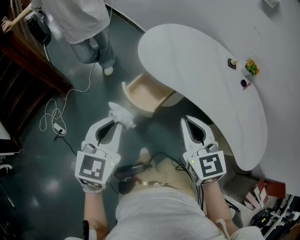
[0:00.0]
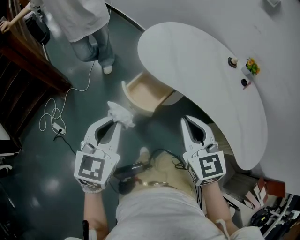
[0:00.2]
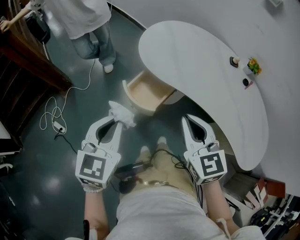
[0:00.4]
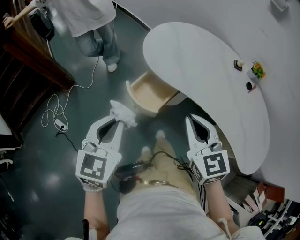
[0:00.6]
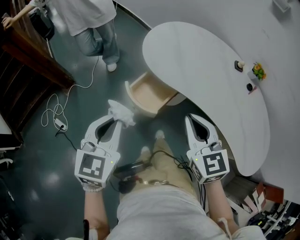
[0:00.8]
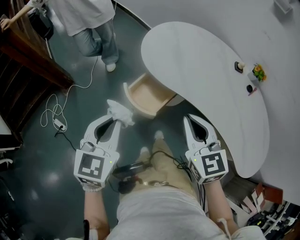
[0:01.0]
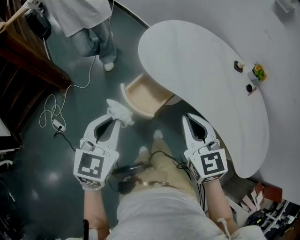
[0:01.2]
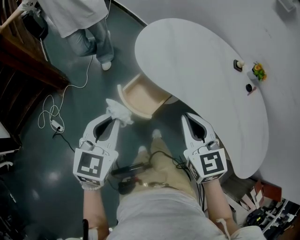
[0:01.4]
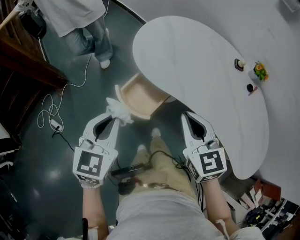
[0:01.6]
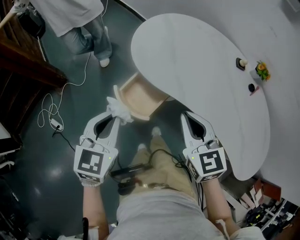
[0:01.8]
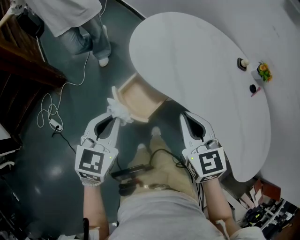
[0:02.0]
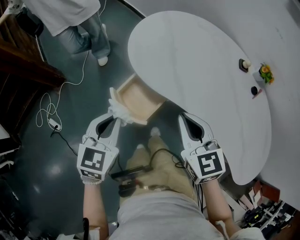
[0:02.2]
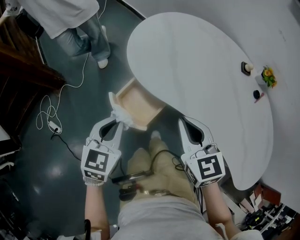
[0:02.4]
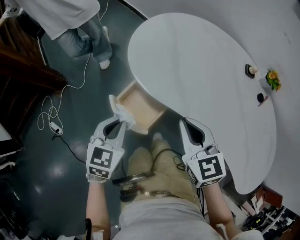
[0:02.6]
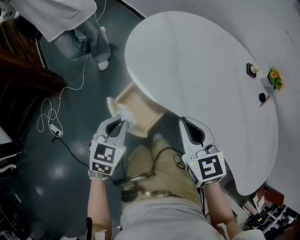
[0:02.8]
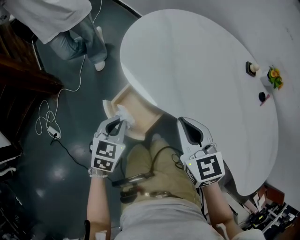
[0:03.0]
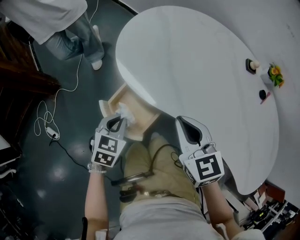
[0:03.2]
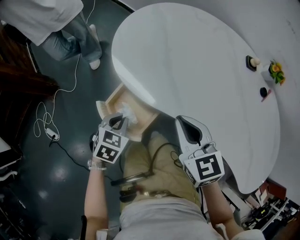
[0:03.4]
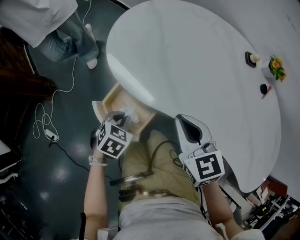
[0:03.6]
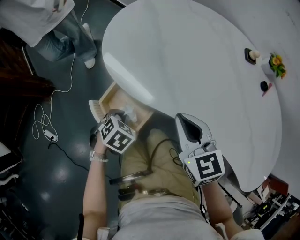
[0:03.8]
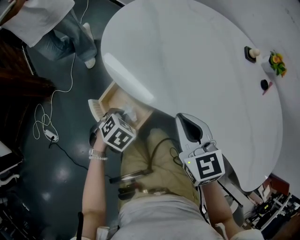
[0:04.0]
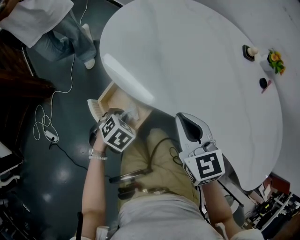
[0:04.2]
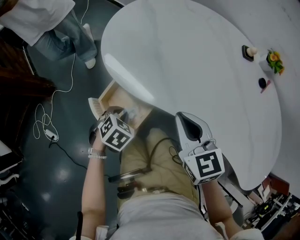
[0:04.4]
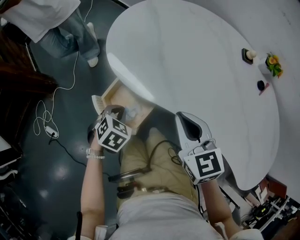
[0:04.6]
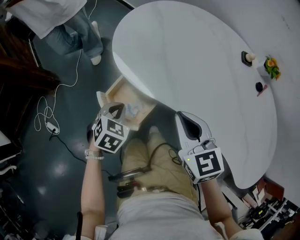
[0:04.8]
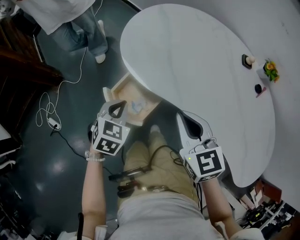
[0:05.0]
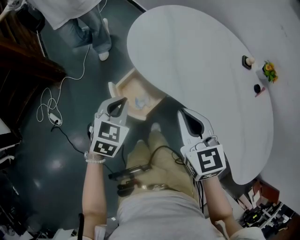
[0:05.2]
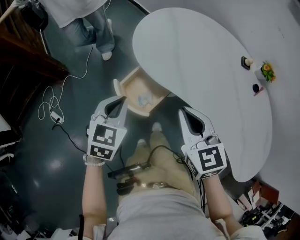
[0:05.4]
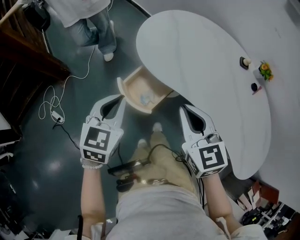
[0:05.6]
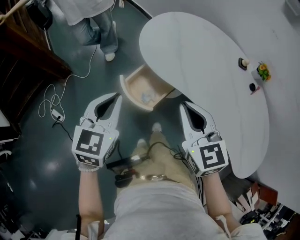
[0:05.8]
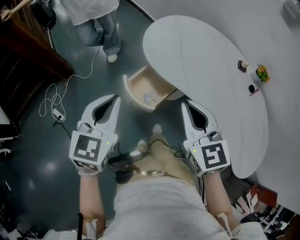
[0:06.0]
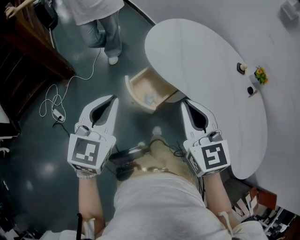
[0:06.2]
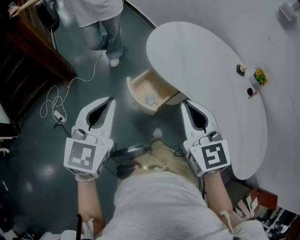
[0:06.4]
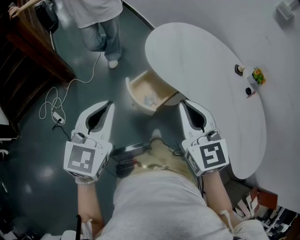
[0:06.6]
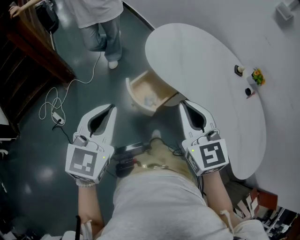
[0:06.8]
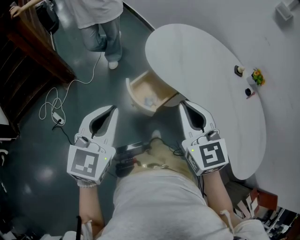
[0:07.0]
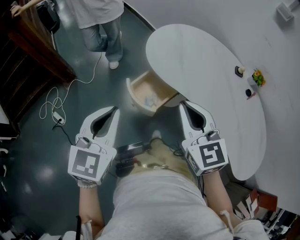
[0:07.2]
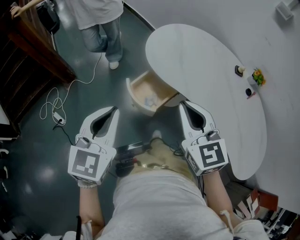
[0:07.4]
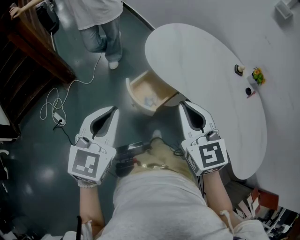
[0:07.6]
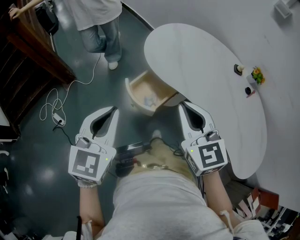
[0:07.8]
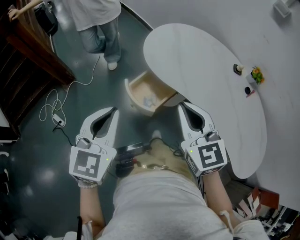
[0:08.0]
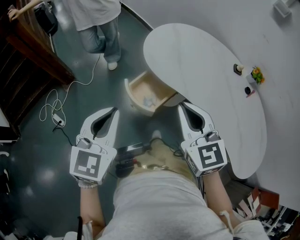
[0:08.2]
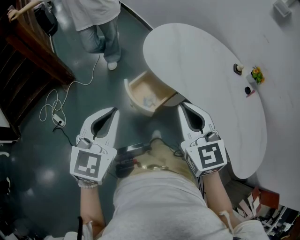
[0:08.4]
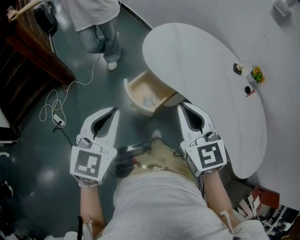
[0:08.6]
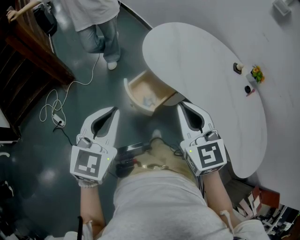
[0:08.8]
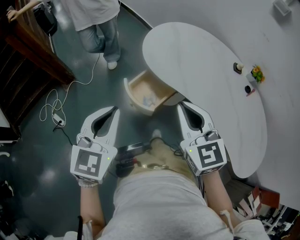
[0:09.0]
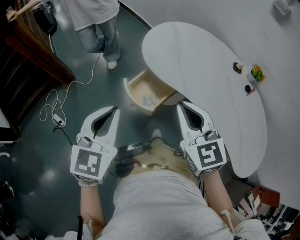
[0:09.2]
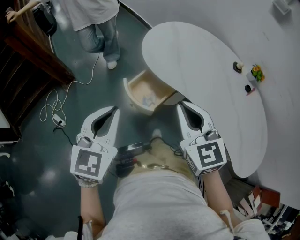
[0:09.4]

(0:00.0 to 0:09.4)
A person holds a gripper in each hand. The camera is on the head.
0:00.0 - 0:01.6: The two grippers go roughly 10 cm forward.
0:01.6 - 0:03.2: The left gripper heads downward and forward, covering approximately 25 cm, and changes its angle by some 20 degrees. Meanwhile the right gripper moves downward and forward, approximately 15 cm.
0:03.2 - 0:04.8: The left gripper travels downward and back again, some 10 cm each way.
0:04.8 - 0:06.2: The left gripper is displaced upward and backward by approximately 30 cm, and tilts its fingers about 40 degrees upward, while the right gripper shifts about 20 cm upward, backward and to the left.
0:06.2 - 0:09.4: There are only small adjustments of the grippers.

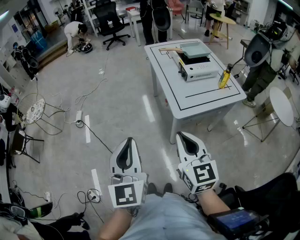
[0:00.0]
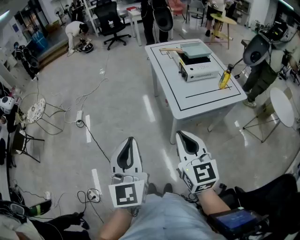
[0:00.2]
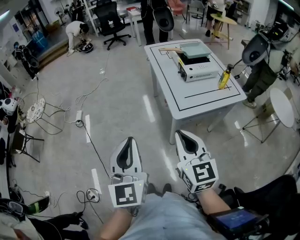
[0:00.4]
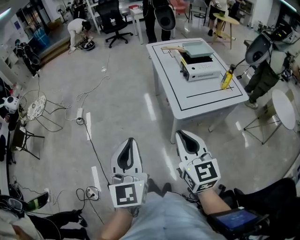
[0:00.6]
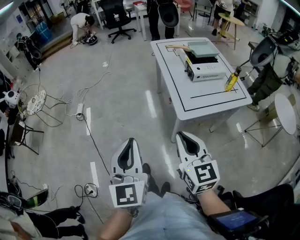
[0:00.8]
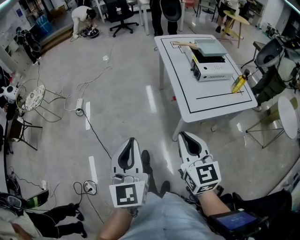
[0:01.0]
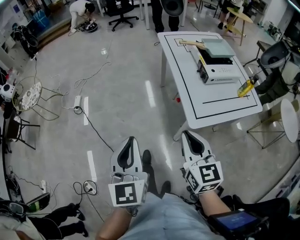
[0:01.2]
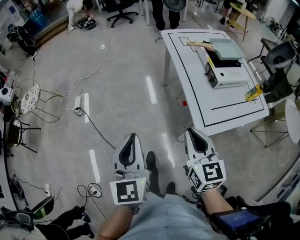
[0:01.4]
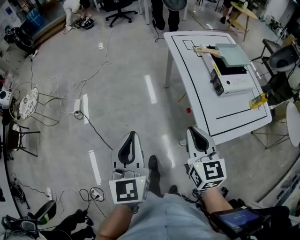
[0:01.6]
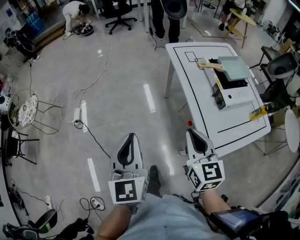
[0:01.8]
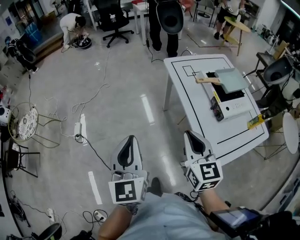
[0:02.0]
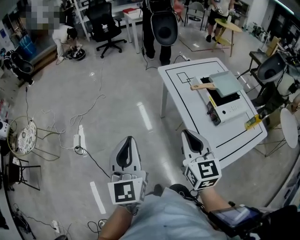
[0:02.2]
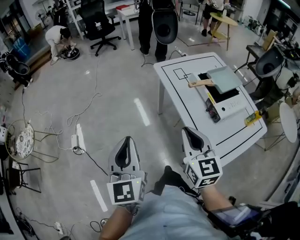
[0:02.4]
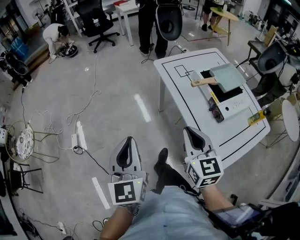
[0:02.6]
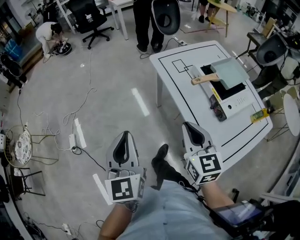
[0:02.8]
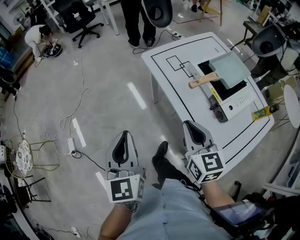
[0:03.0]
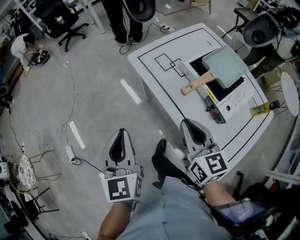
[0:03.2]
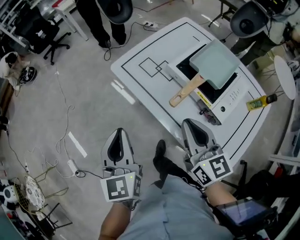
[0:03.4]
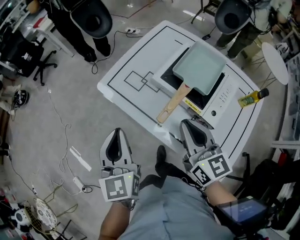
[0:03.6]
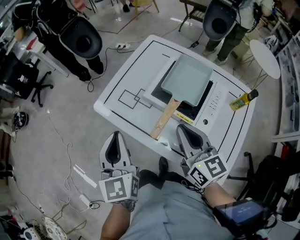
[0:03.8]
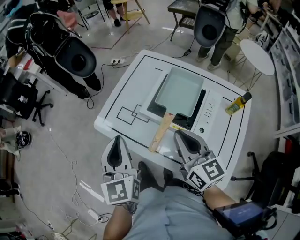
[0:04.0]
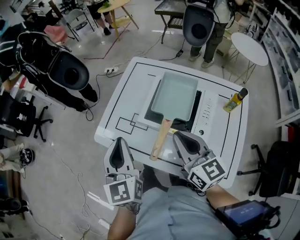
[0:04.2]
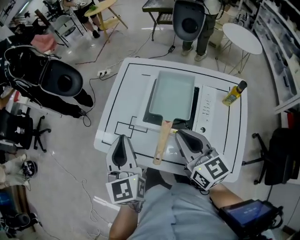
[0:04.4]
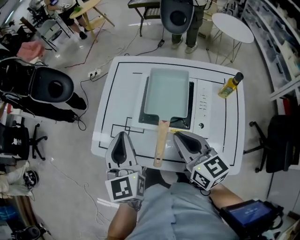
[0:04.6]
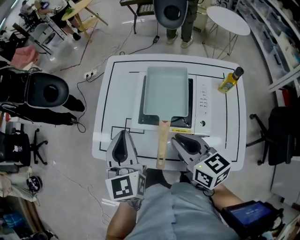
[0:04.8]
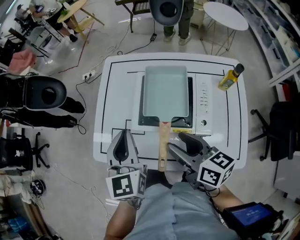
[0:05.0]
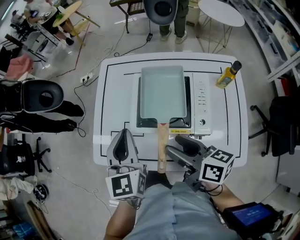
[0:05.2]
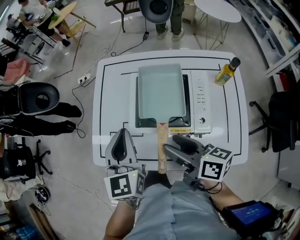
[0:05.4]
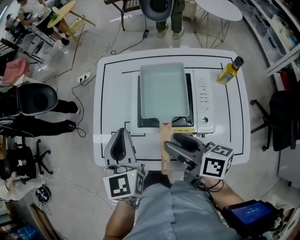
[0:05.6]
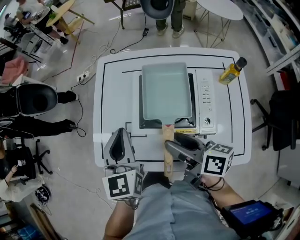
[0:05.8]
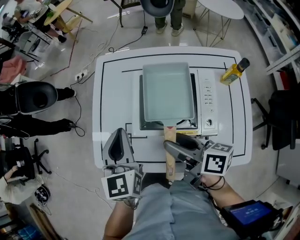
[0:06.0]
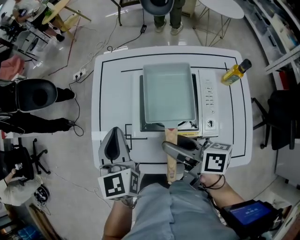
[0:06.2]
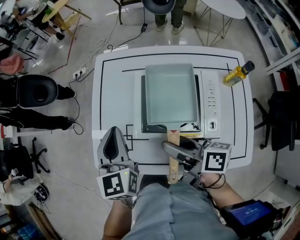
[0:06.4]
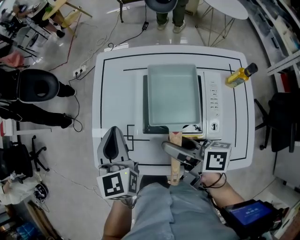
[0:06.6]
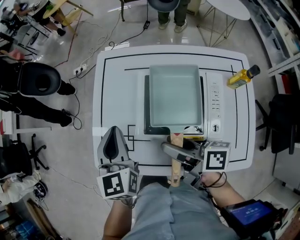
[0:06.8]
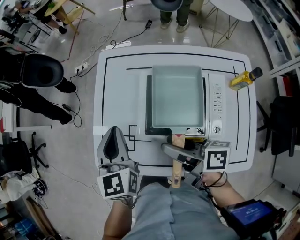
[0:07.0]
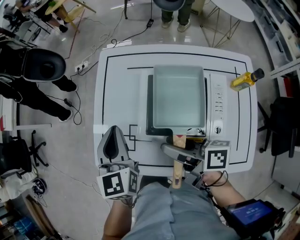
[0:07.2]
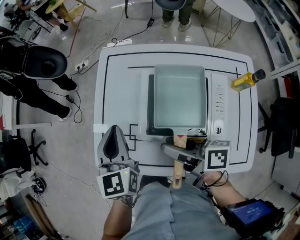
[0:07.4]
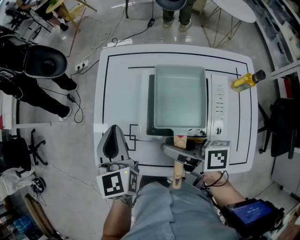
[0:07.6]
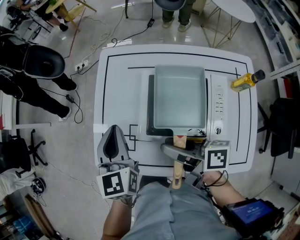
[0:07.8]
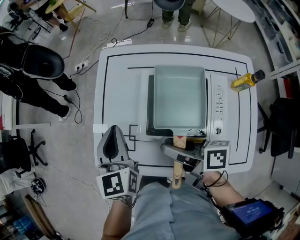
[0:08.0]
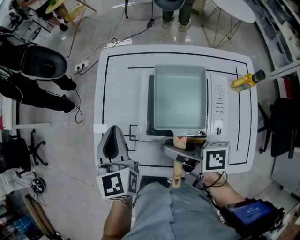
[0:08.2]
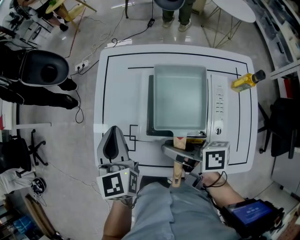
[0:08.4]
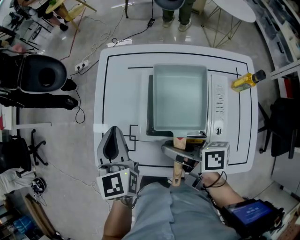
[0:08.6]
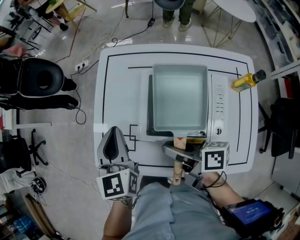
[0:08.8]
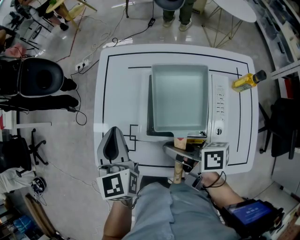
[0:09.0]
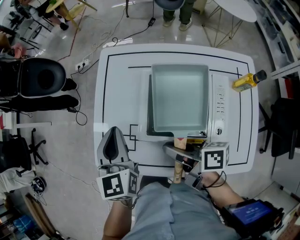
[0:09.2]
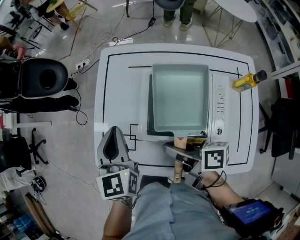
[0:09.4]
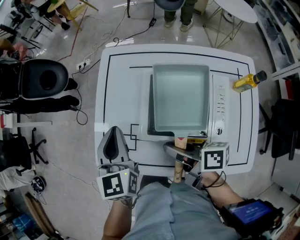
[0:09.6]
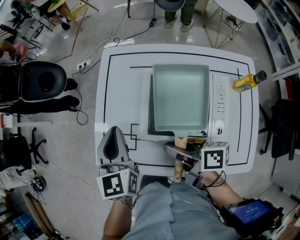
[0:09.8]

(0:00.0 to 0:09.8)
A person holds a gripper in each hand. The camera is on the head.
0:00.0 - 0:01.4: The two grippers go about 25 cm forward.
0:01.4 - 0:02.8: Both grippers travel together forward, approximately 30 cm.
0:02.8 - 0:04.2: The right gripper changes place by approximately 30 cm, and turns by about 30 degrees. The left gripper moves some 40 cm, and rotates roughly 40 degrees.
0:04.2 - 0:05.6: The left gripper shifts about 15 cm forward, downward and to the right, and rotates some 30 degrees. Meanwhile the right gripper goes approximately 5 cm downward, rotates around the line of its fingers by roughly 40 degrees, clockwise from behind, and opens.
0:05.6 - 0:07.0: The two grippers go roughly 5 cm forward.
0:07.0 - 0:09.8: The grippers stay close to where they were, moving slightly.

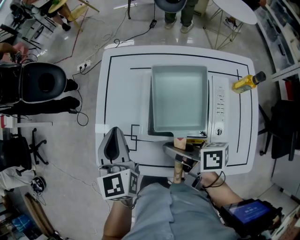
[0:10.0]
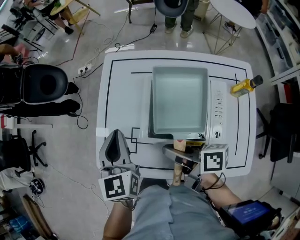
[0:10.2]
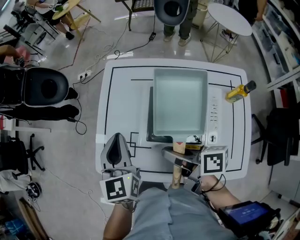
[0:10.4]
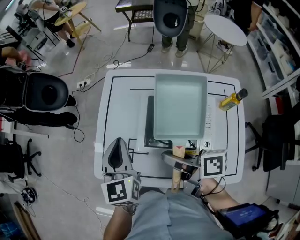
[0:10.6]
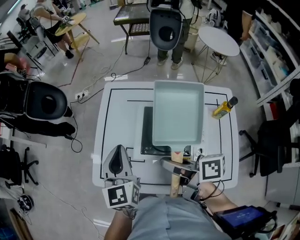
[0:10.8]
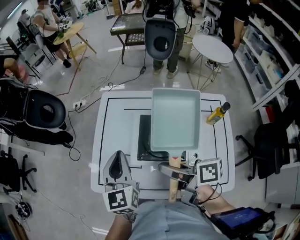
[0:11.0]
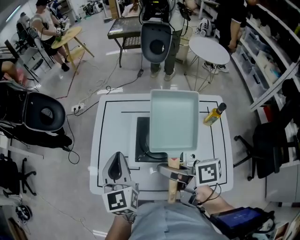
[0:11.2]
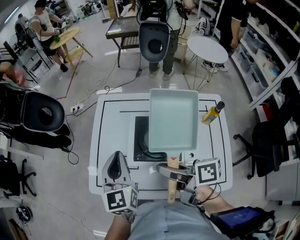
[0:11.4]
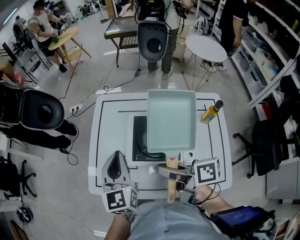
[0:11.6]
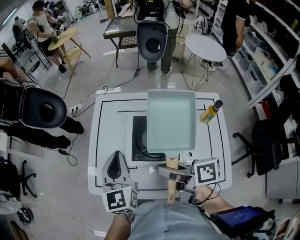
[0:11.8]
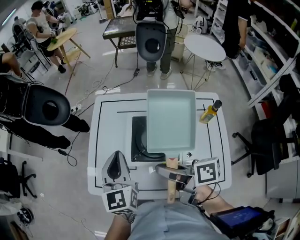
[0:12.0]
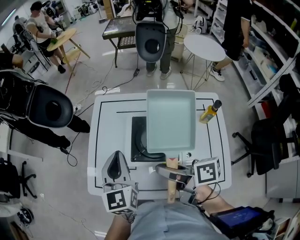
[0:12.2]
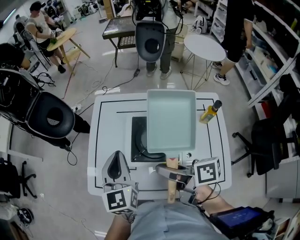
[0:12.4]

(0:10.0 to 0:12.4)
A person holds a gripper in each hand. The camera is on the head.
0:10.0 - 0:11.2: The right gripper is displaced upward by some 10 cm, while the left gripper moves upward and backward, some 10 cm.
0:11.2 - 0:12.4: There are only small adjustments of the grippers.

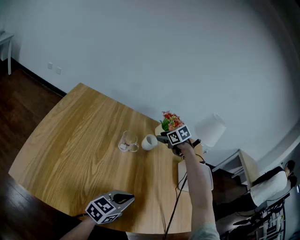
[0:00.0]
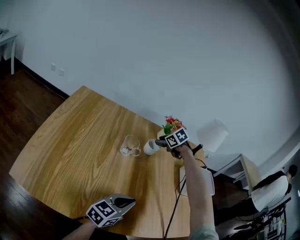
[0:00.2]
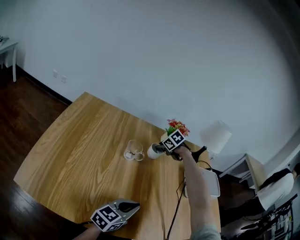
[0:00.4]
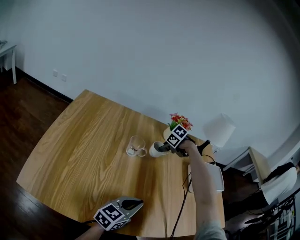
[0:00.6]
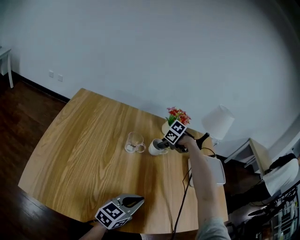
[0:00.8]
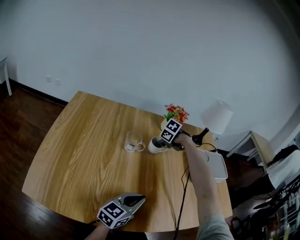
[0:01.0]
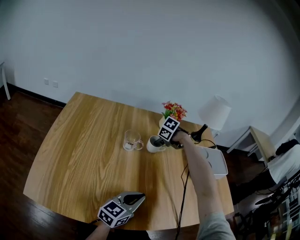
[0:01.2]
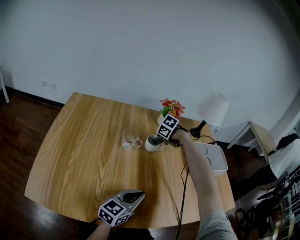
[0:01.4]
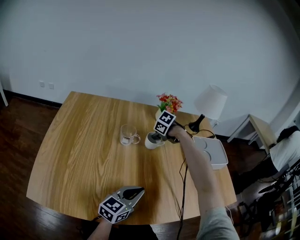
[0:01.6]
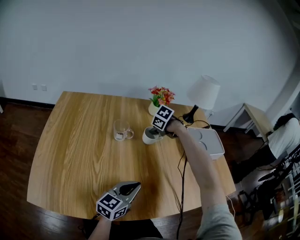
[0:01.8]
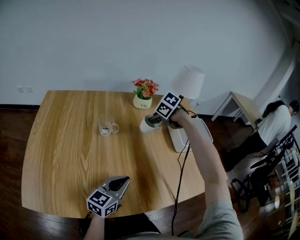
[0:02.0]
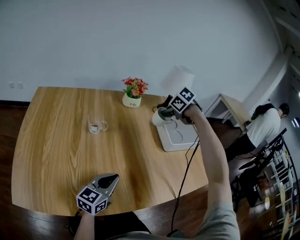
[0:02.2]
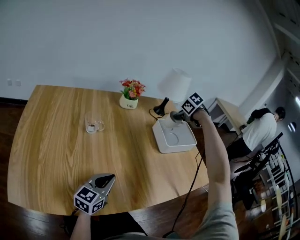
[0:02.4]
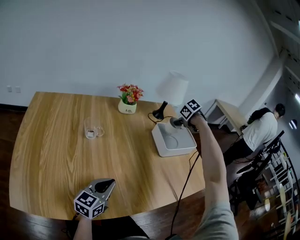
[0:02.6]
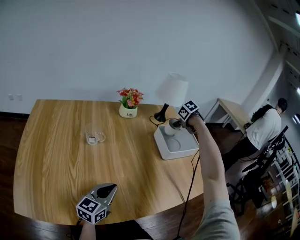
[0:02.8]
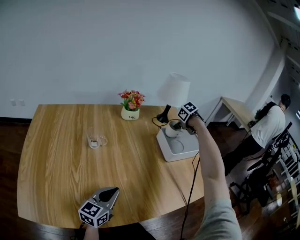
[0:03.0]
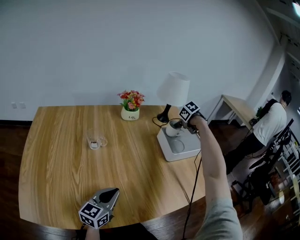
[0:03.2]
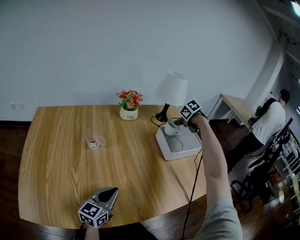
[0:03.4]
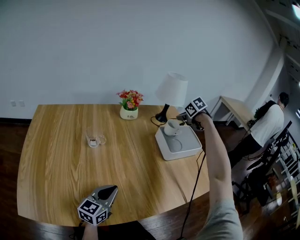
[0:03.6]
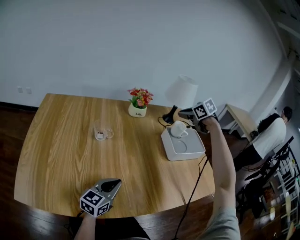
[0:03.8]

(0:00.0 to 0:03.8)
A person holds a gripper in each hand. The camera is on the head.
0:00.0 - 0:01.2: The right gripper shifts approximately 10 cm downward, and rotates some 30 degrees.
0:01.2 - 0:02.6: The right gripper shifts by approximately 35 cm, and turns by about 40 degrees.
0:02.6 - 0:03.8: The right gripper travels upward and to the left by about 10 cm, and swivels some 30 degrees.